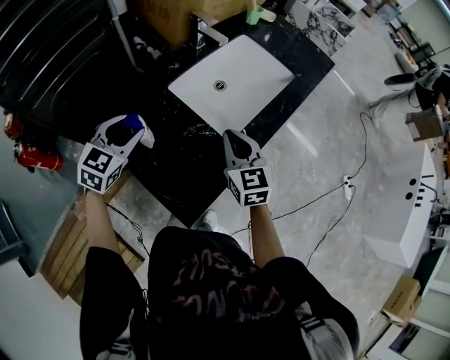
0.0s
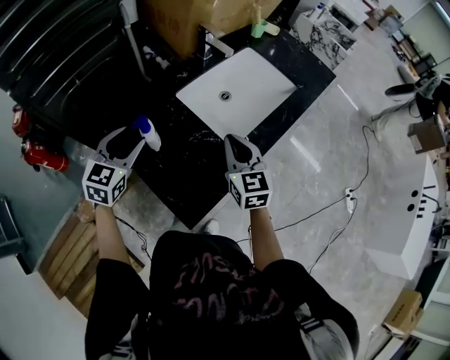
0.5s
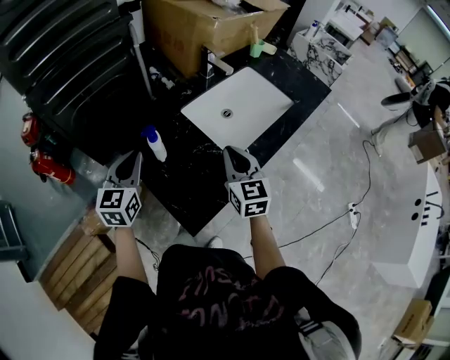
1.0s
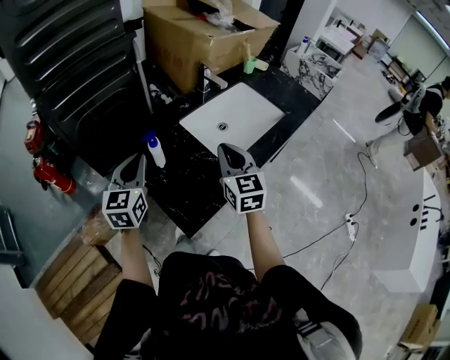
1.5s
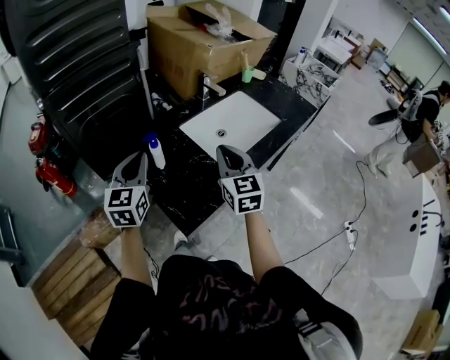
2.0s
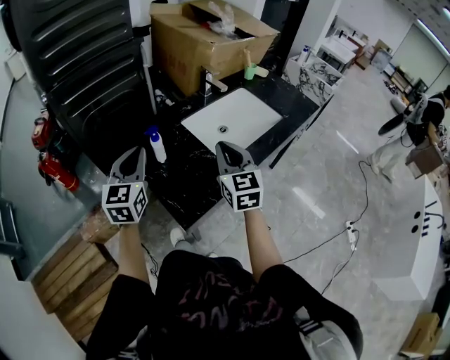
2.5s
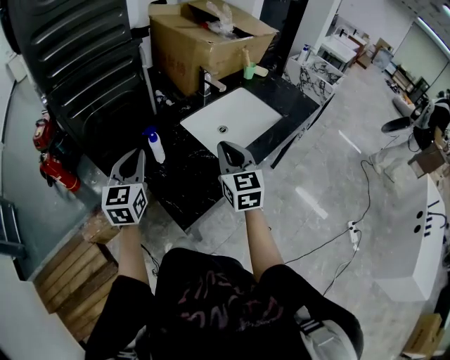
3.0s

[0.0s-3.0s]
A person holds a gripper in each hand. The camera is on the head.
0.0s to 1.5s: The right gripper goes roughly 10 cm upward, while the left gripper shifts roughly 10 cm backward and upward, turns by roughly 40 degrees, and closes.
1.5s to 3.0s: The left gripper changes place by some 5 cm.

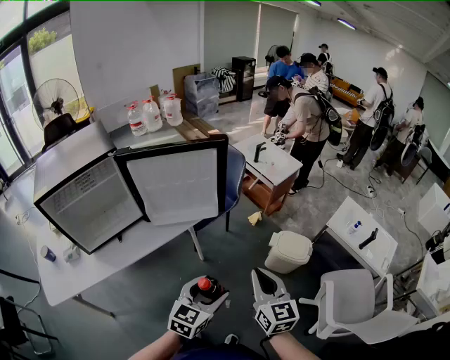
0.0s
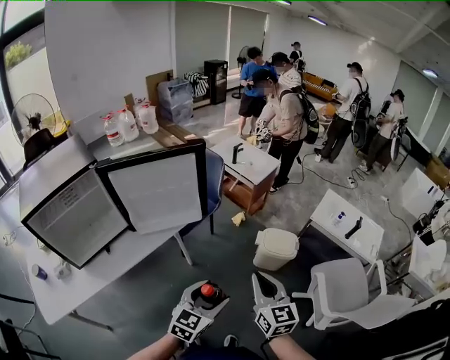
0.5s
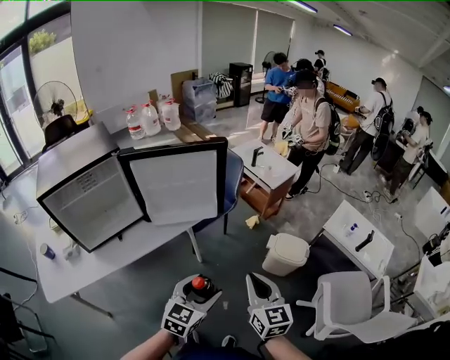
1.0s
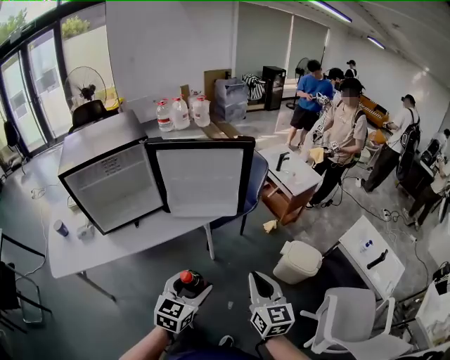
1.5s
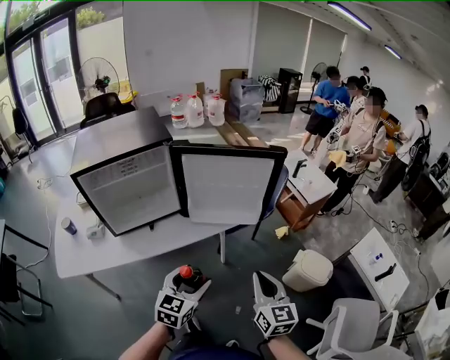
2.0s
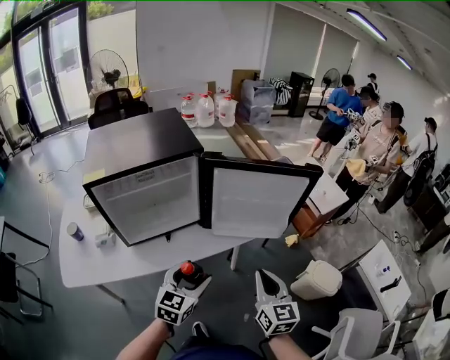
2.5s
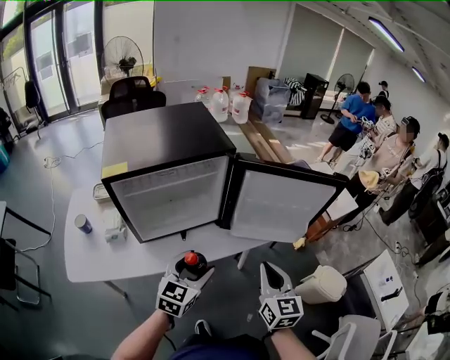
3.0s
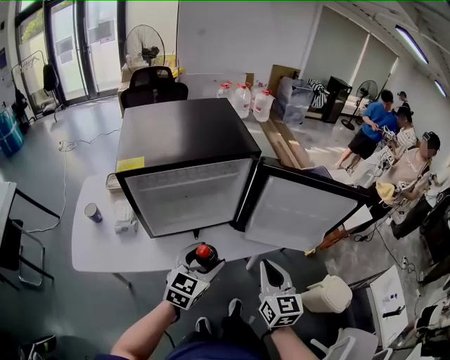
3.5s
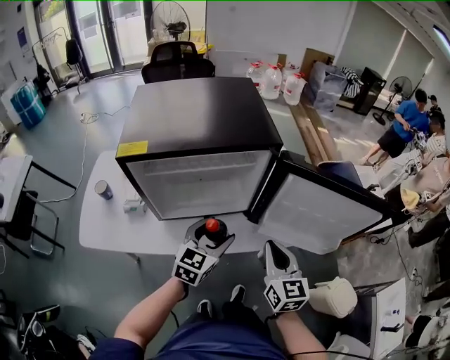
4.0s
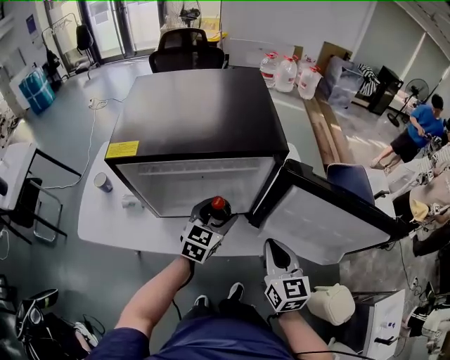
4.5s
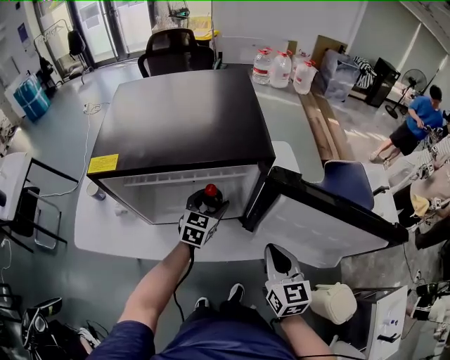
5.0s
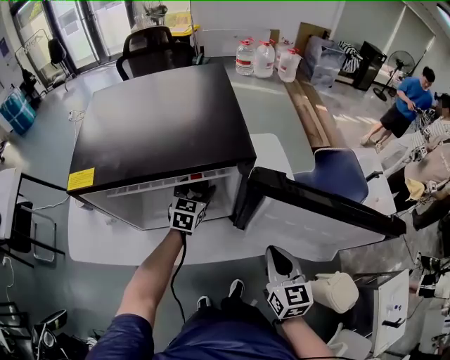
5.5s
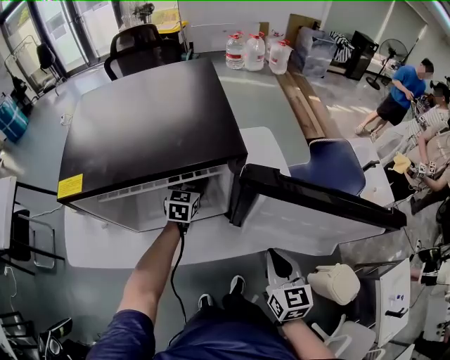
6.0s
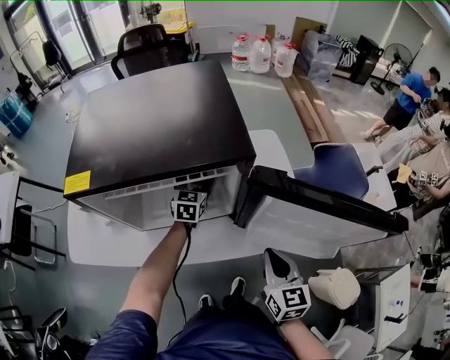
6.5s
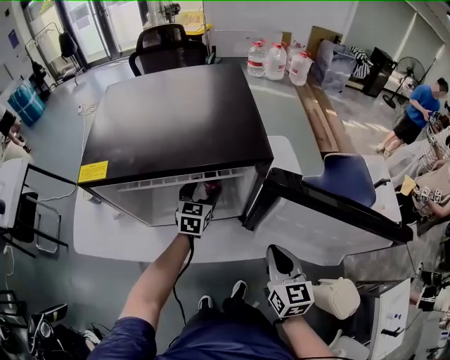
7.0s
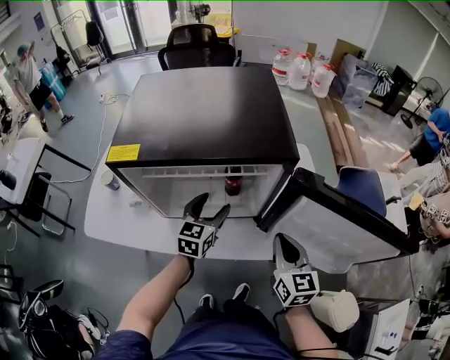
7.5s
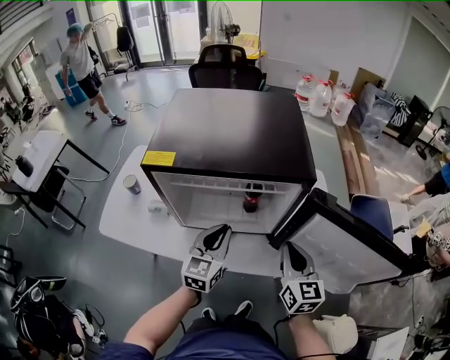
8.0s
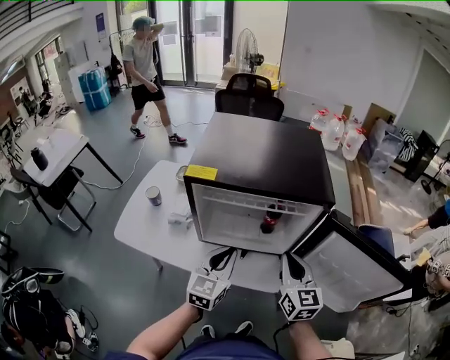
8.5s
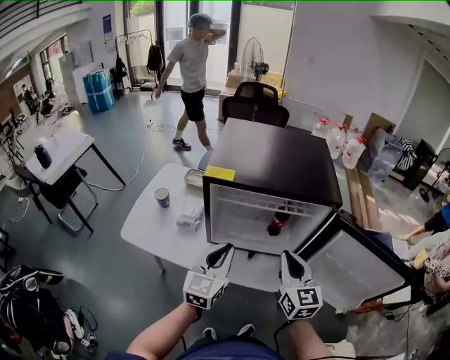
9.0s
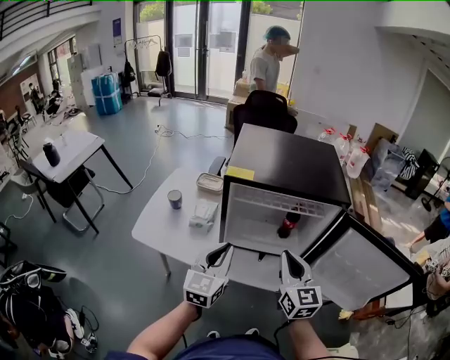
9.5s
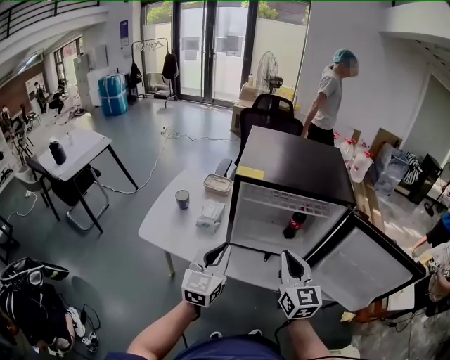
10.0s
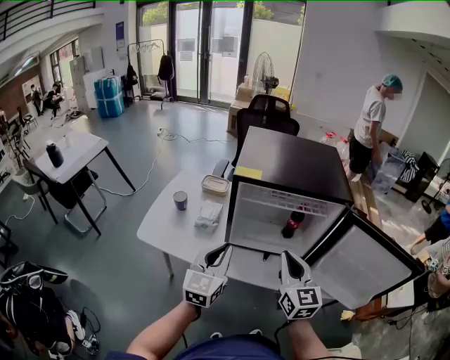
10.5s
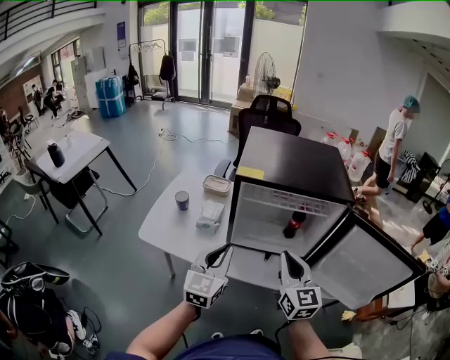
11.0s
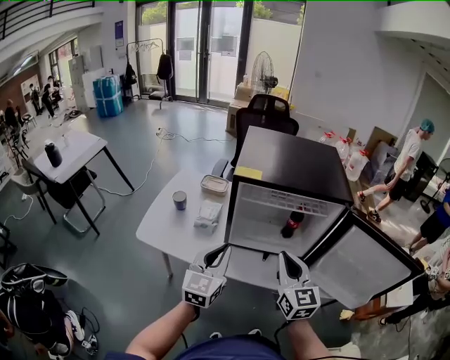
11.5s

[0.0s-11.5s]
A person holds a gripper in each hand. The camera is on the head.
0.0s to 2.0s: The grippers both shift to the left by some 15 cm. The left gripper swivels some 20 degrees.
2.0s to 4.0s: The right gripper travels to the left and forward by about 30 cm; the left gripper shifts roughly 30 cm forward and to the left.
4.0s to 6.0s: The right gripper travels to the right and downward by about 10 cm. Meanwhile the left gripper heads forward and downward, covering approximately 25 cm.
6.0s to 7.5s: The right gripper shifts roughly 10 cm to the left and forward. Meanwhile the left gripper goes about 15 cm backward and upward.
7.5s to 9.5s: The right gripper goes approximately 20 cm to the left and upward; the left gripper goes about 30 cm to the left, backward and upward, rotates roughly 20 degrees, and closes its fingers.
9.5s to 11.5s: The grippers make only small movements.

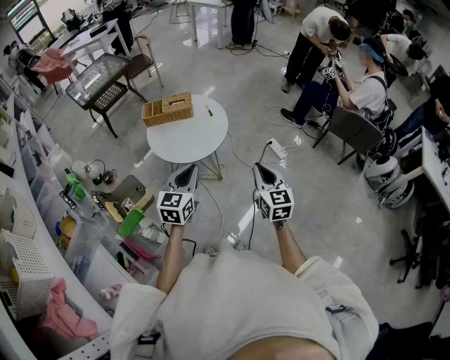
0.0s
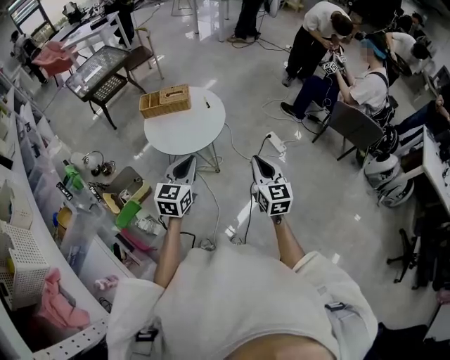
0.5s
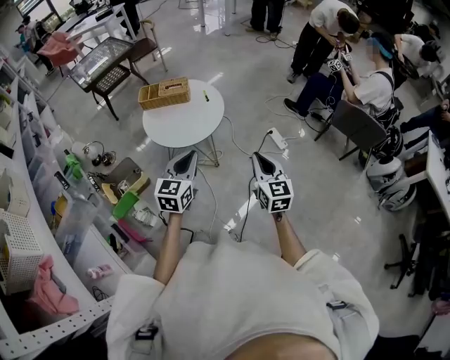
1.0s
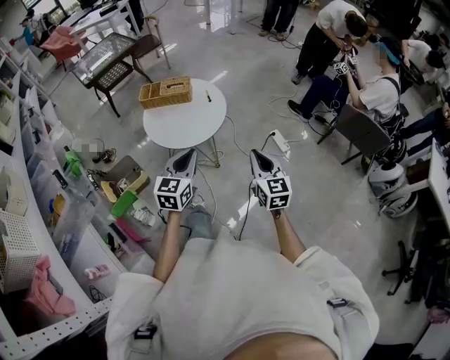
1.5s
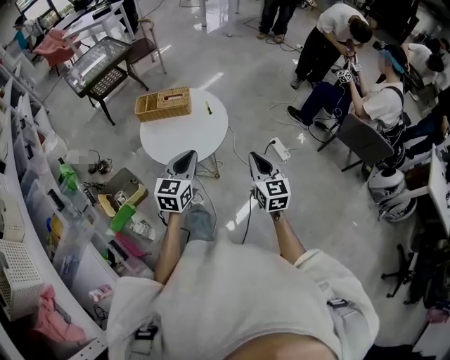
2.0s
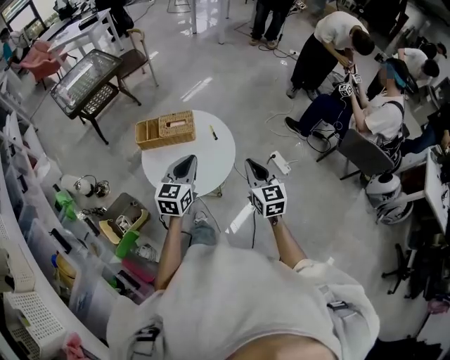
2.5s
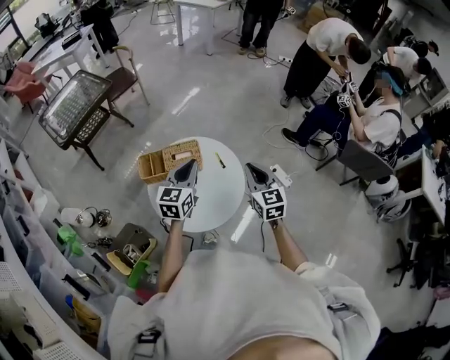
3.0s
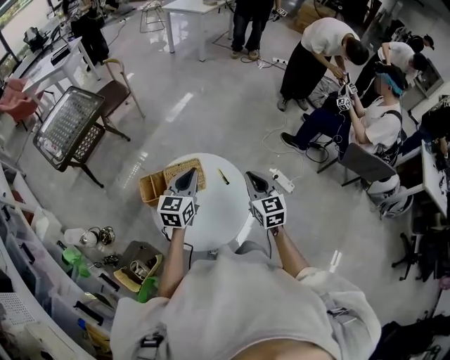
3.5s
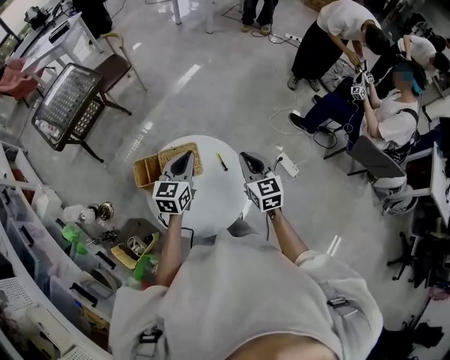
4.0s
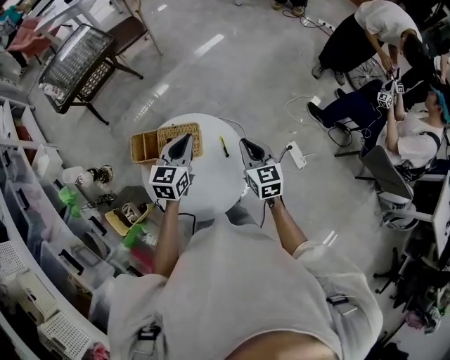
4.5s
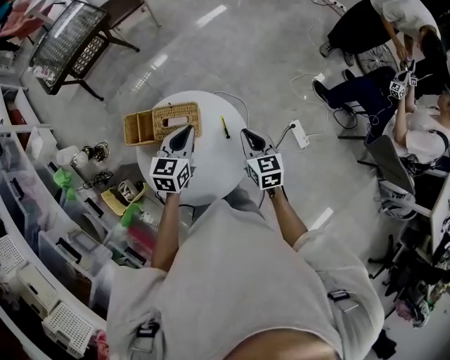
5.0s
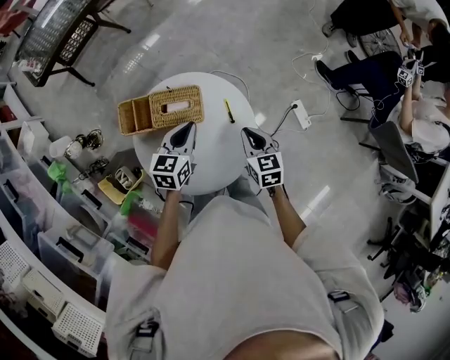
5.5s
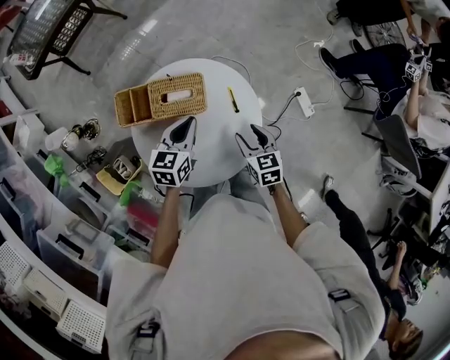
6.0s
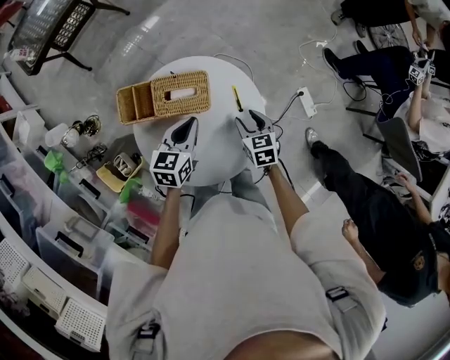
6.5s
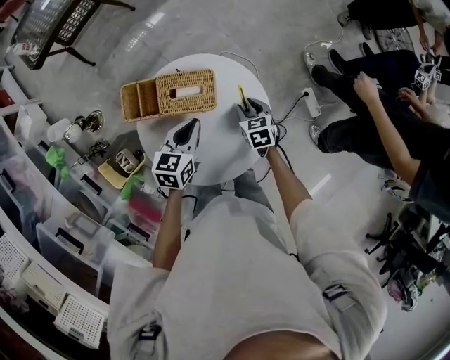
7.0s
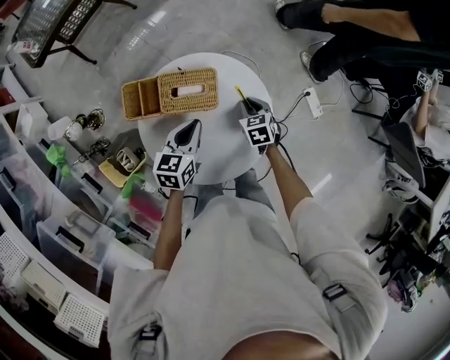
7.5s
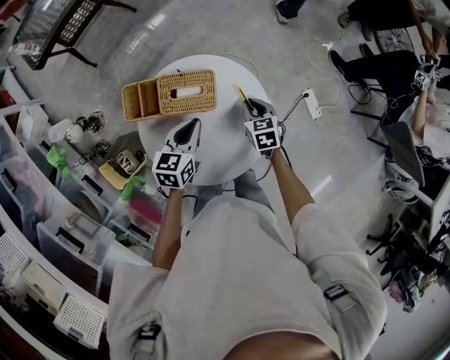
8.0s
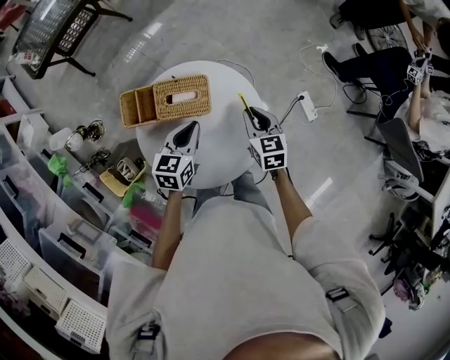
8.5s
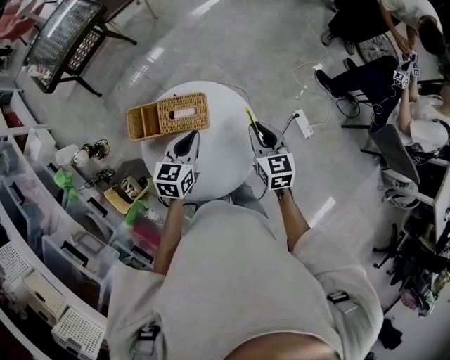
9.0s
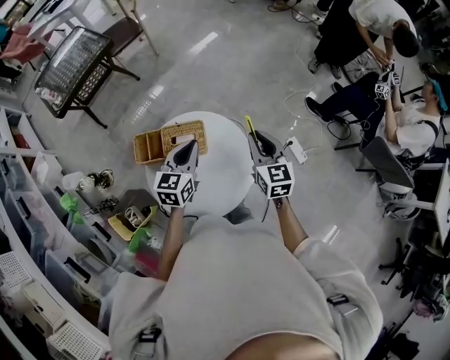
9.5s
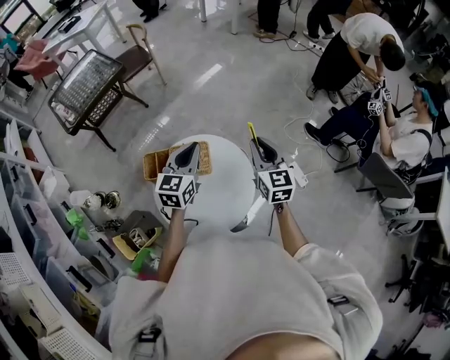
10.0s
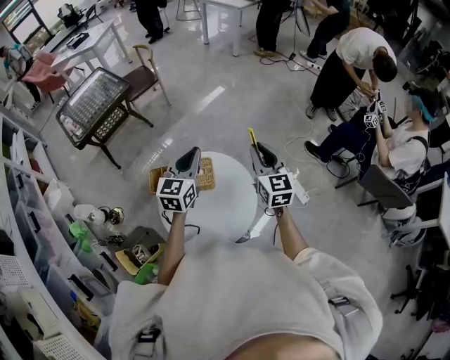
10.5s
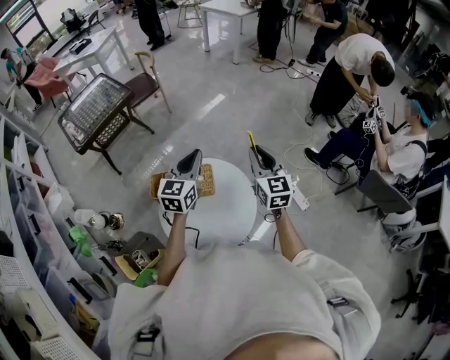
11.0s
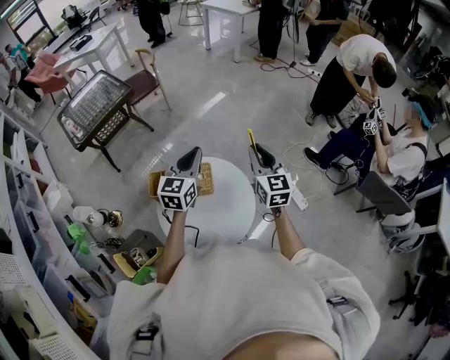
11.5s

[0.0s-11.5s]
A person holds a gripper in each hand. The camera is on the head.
0.0s to 2.0s: The two grippers go some 10 cm forward.
2.0s to 4.0s: The right gripper travels forward and to the left by some 30 cm, while the left gripper goes approximately 30 cm forward.
4.0s to 6.0s: The two grippers go roughly 15 cm downward. The right gripper swivels approximately 30 degrees, and opens up.
6.0s to 7.5s: The right gripper is displaced forward and downward by some 10 cm, and closes.
7.5s to 9.5s: The left gripper travels upward and forward by some 15 cm; the right gripper is displaced upward by approximately 25 cm, and tips its fingers upward by approximately 30 degrees.
9.5s to 11.5s: The right gripper heads upward, covering some 10 cm, while the left gripper travels upward and forward by some 10 cm.

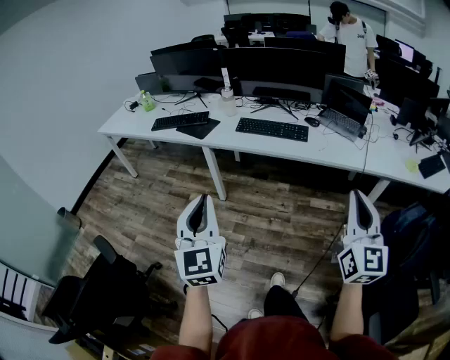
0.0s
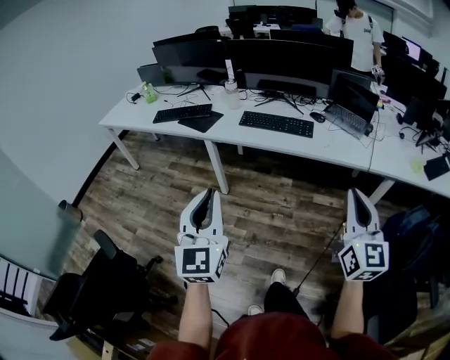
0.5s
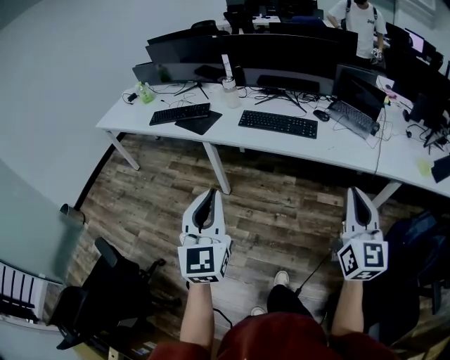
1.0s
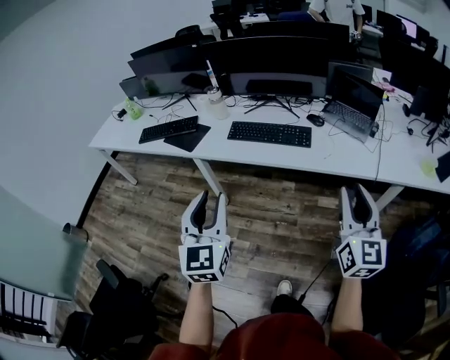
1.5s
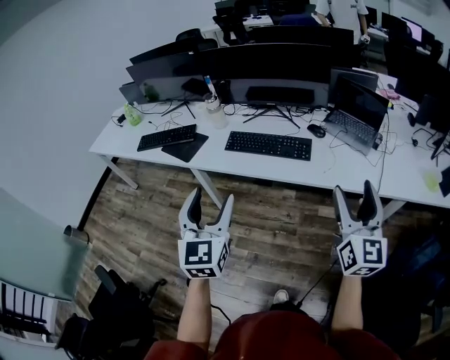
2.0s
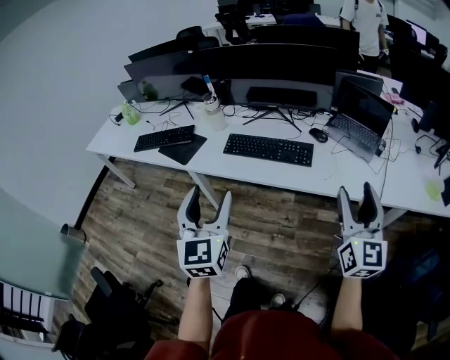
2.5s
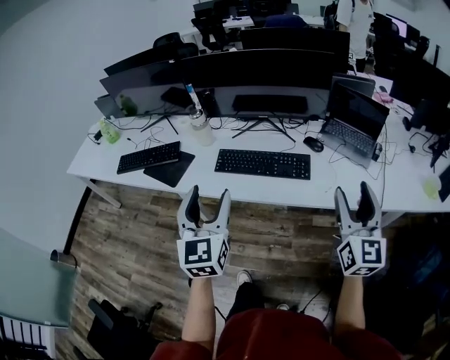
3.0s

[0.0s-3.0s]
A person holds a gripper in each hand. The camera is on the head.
0.0s to 1.5s: The grippers both shift forward by roughly 20 cm.
1.5s to 3.0s: The two grippers go about 20 cm forward. The left gripper opens.
